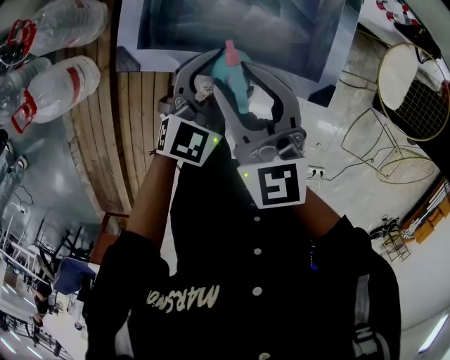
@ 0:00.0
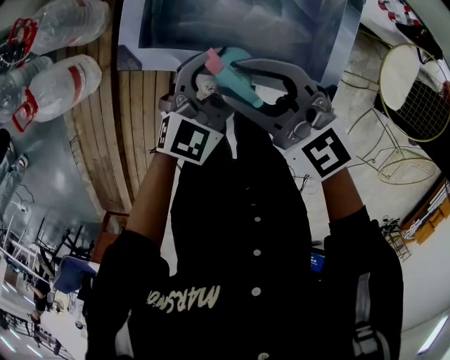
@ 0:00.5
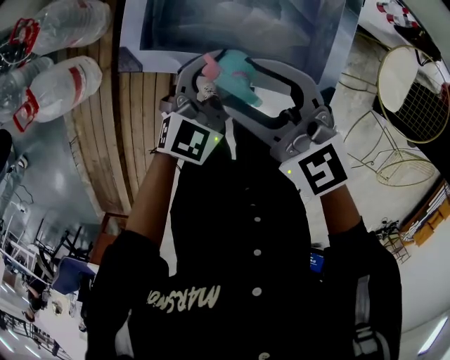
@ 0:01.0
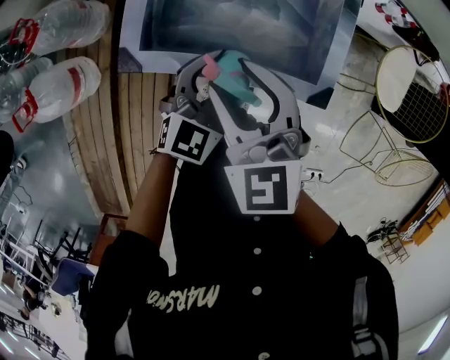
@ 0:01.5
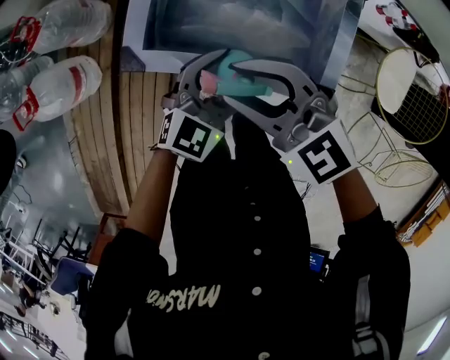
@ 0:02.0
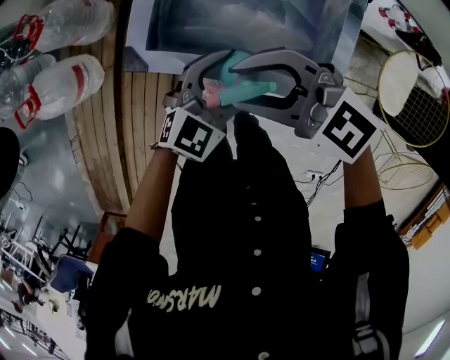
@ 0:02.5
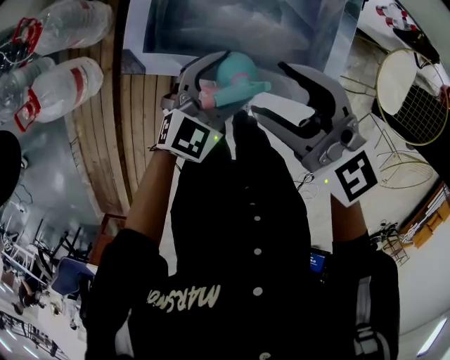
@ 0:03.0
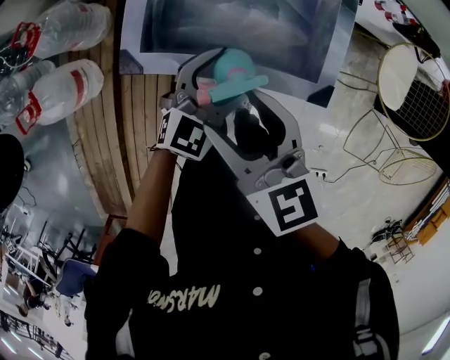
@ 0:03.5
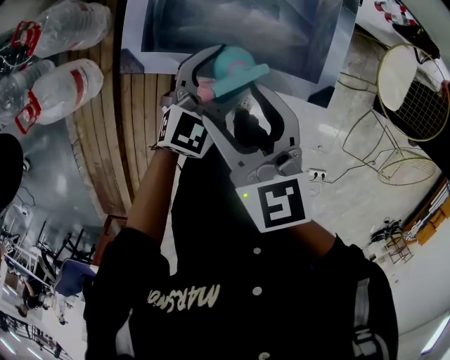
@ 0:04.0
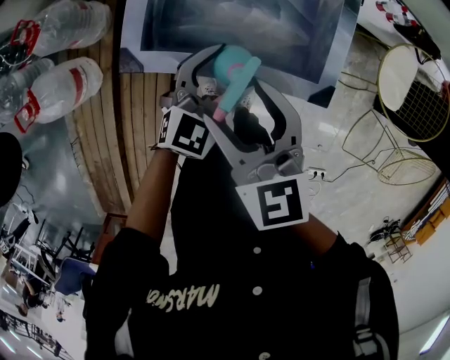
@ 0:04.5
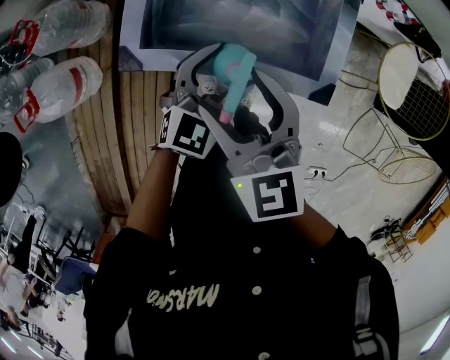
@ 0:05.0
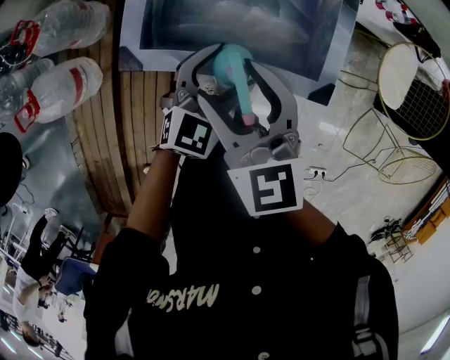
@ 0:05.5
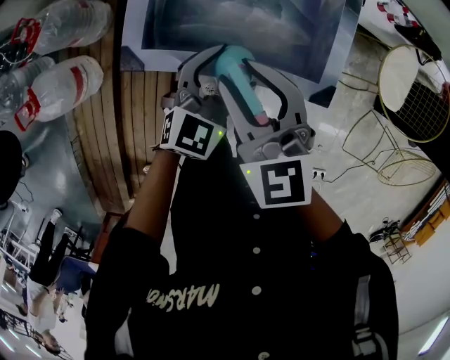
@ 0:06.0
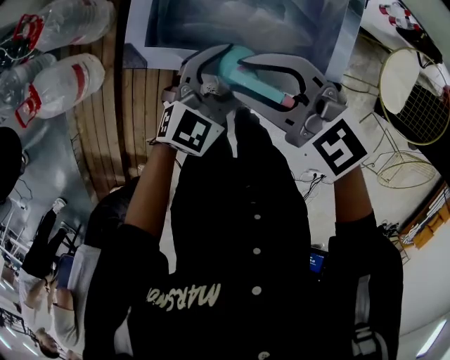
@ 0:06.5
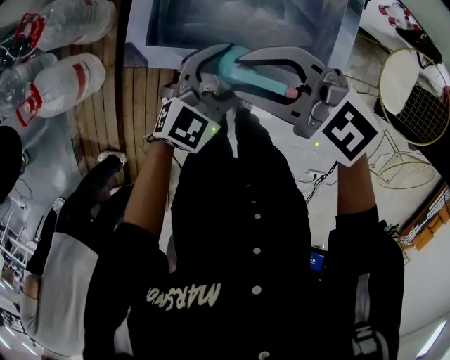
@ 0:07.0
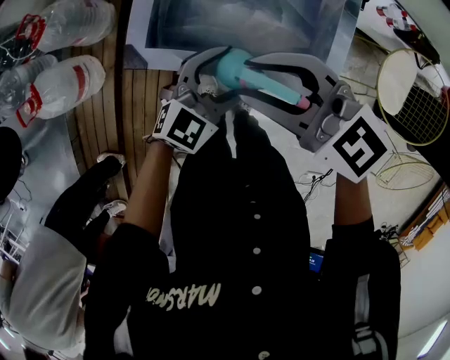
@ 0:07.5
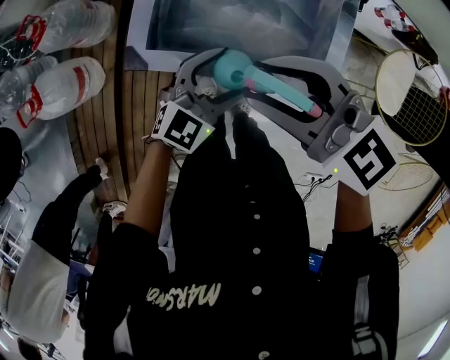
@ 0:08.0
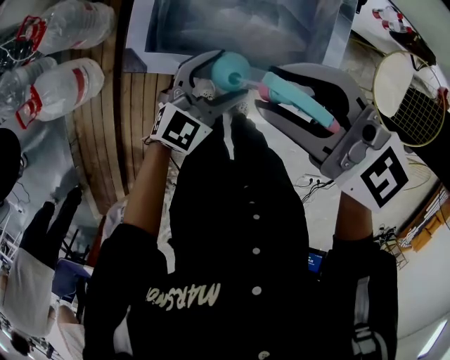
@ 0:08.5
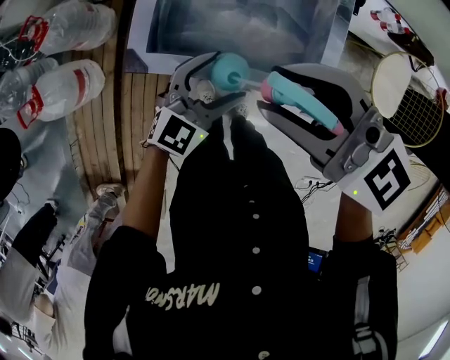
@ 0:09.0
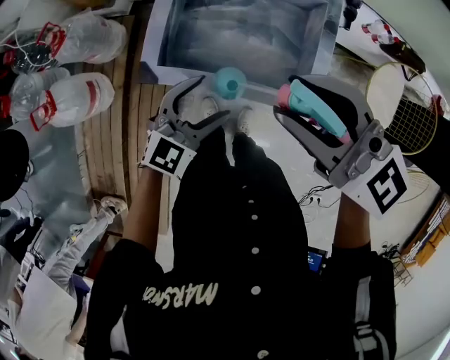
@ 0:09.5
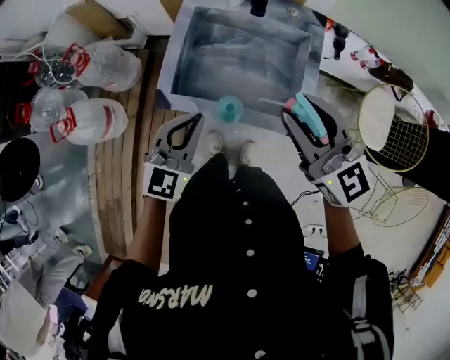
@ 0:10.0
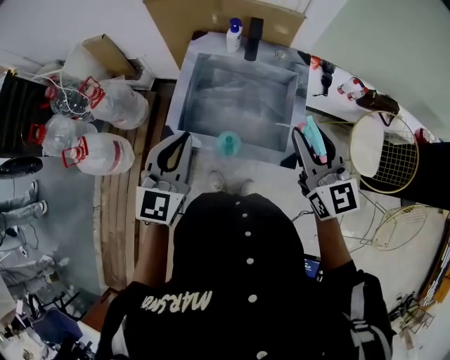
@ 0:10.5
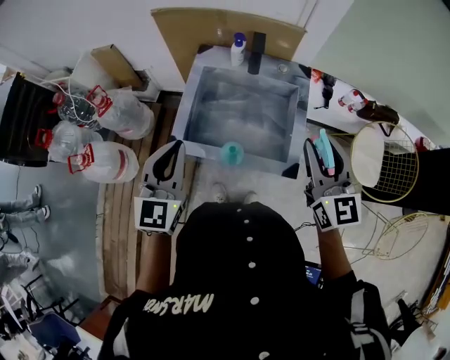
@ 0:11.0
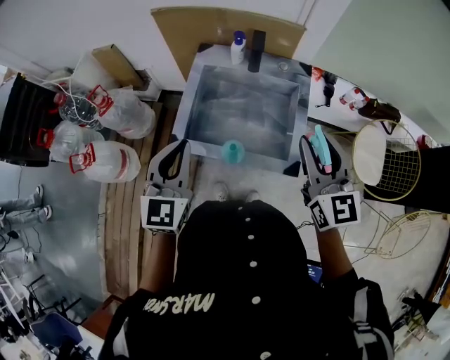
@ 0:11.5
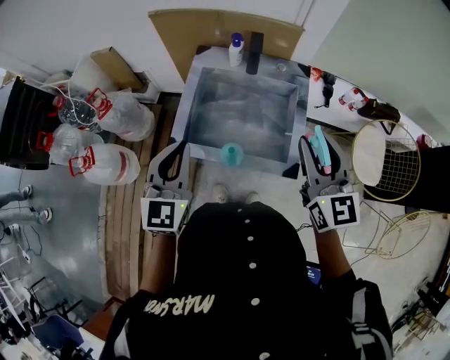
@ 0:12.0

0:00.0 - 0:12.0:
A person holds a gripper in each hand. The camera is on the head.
0:00.0 - 0:02.0: The right gripper changes its angle by roughly 40 degrees.
0:02.0 - 0:04.0: The right gripper rotates approximately 50 degrees, and opens its fingers.
0:04.0 - 0:06.0: The right gripper closes.
0:06.0 - 0:08.0: The right gripper travels upward by roughly 5 cm, and turns by roughly 40 degrees.
0:08.0 - 0:10.0: The right gripper heads upward and to the right, covering approximately 15 cm, and rotates about 30 degrees; the left gripper moves upward and to the left, roughly 15 cm, and closes up.
0:10.0 - 0:12.0: The right gripper is displaced to the right by some 5 cm, and swivels some 20 degrees. Meanwhile the left gripper heads upward, covering approximately 10 cm, and swivels roughly 20 degrees.

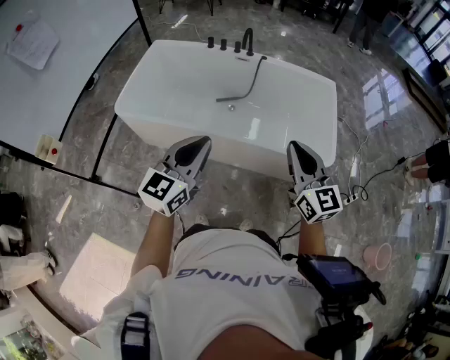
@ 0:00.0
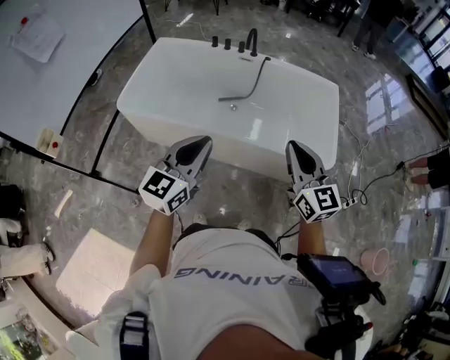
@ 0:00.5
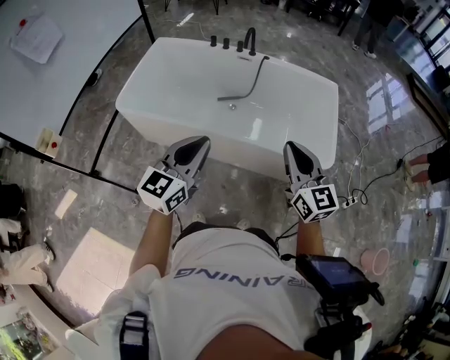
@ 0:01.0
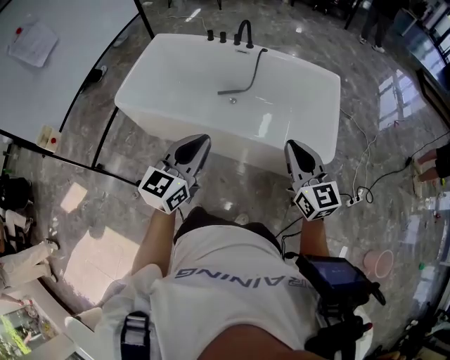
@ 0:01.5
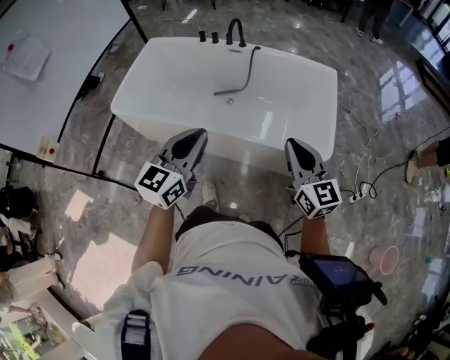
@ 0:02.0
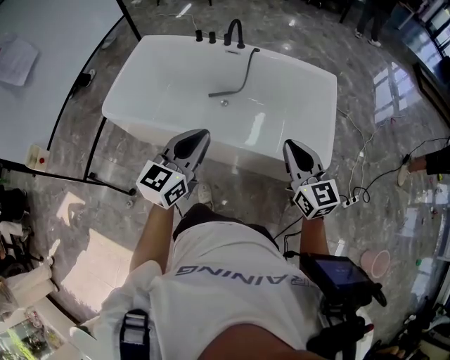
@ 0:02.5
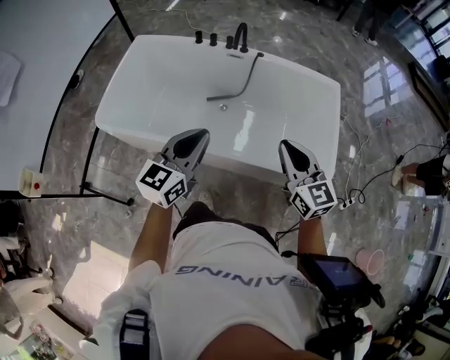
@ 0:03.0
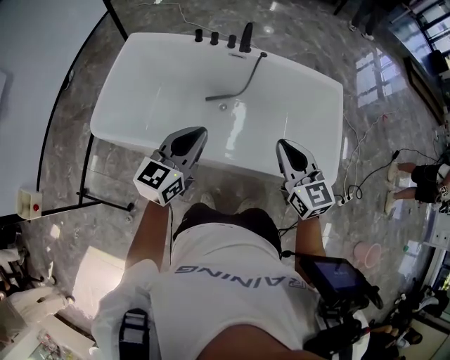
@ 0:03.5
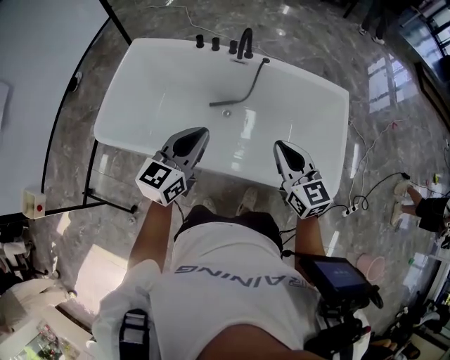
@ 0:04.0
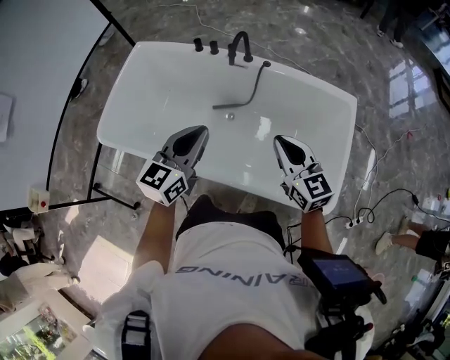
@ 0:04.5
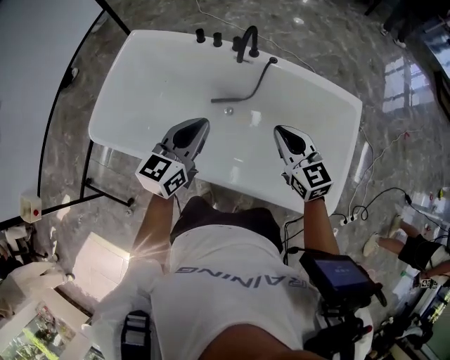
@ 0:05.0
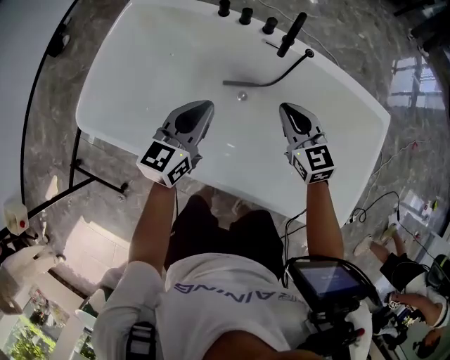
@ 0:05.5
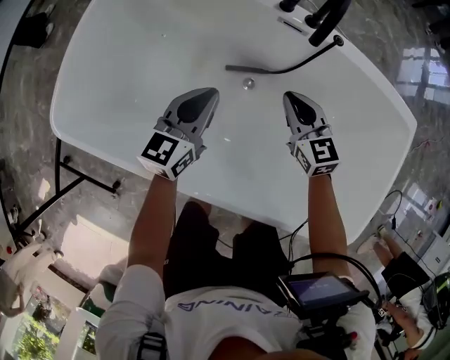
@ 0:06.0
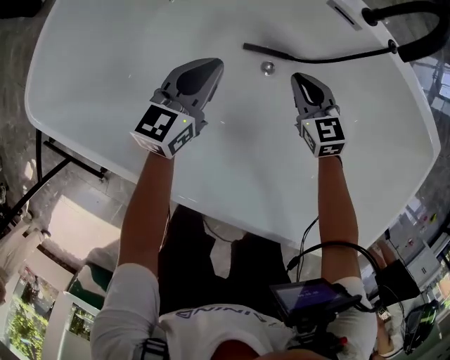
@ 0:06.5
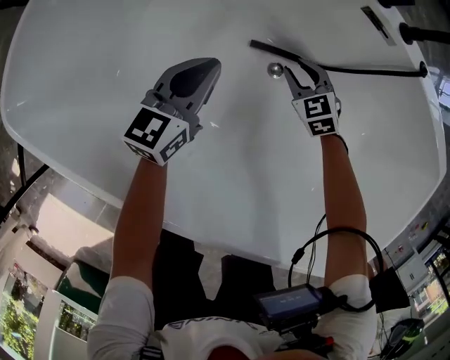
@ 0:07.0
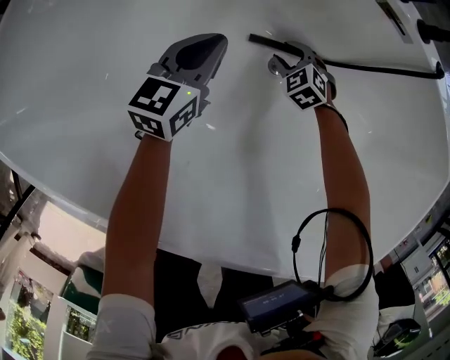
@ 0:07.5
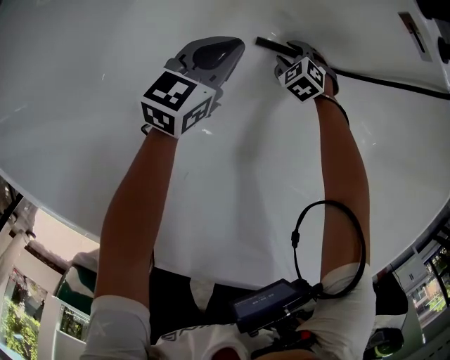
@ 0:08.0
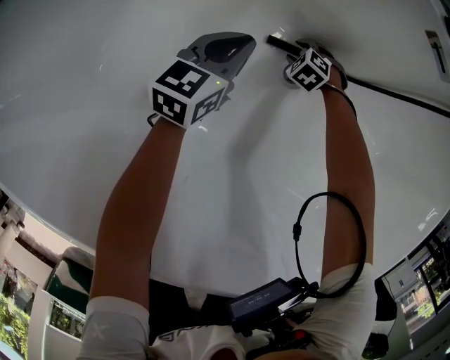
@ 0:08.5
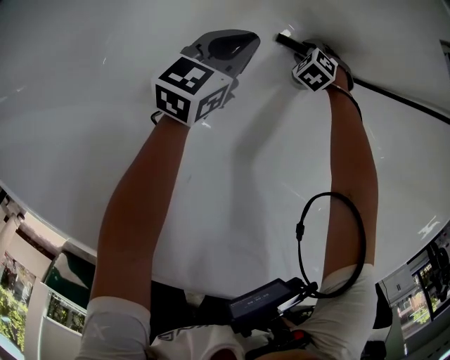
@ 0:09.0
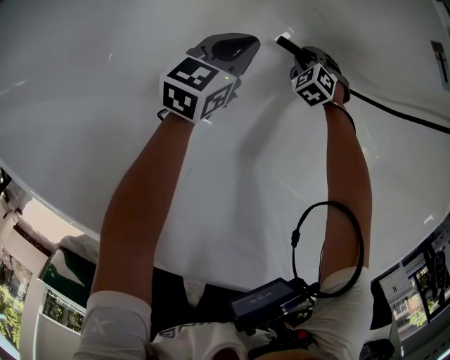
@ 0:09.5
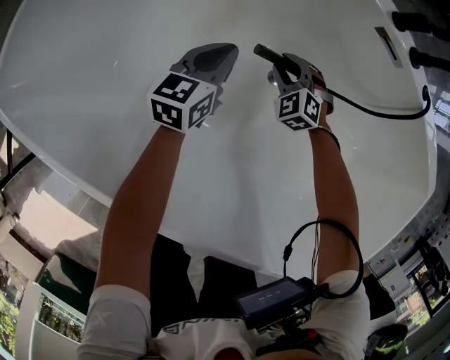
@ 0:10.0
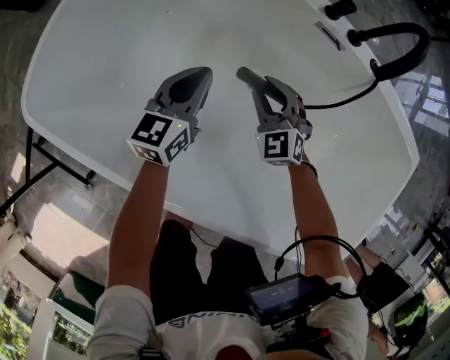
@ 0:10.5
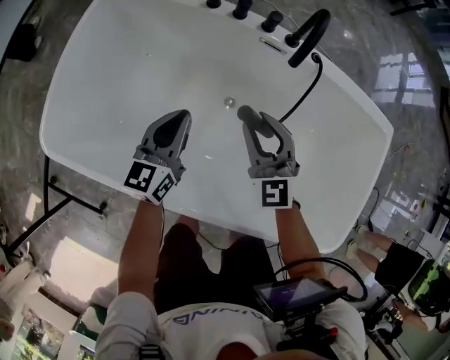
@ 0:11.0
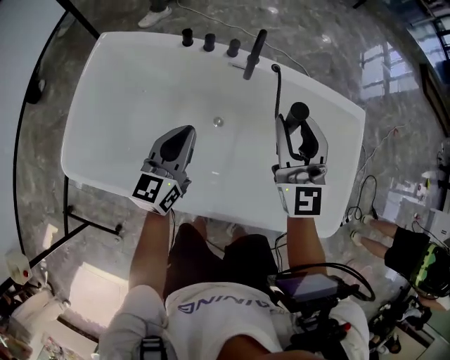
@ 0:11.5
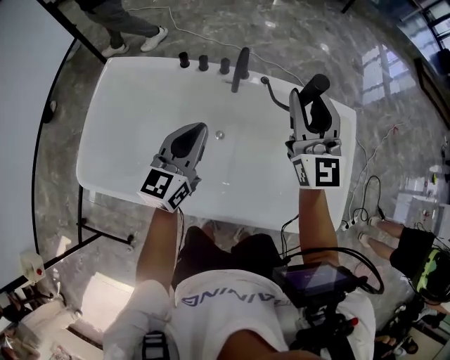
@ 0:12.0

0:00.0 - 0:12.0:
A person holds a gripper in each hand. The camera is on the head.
0:00.0 - 0:02.0: The grippers both shift to the right by some 15 cm.
0:02.0 - 0:04.0: Both grippers move forward and to the left, approximately 30 cm.
0:04.0 - 0:06.0: Both grippers move downward and forward, approximately 50 cm.
0:06.0 - 0:08.0: The grippers both shift downward by roughly 40 cm. The right gripper tilts its fingers approximately 40 degrees downward, and opens up.
0:08.0 - 0:10.0: The left gripper travels upward by approximately 5 cm. The right gripper goes approximately 15 cm upward.
0:10.0 - 0:12.0: The two grippers go about 70 cm upward. The right gripper tilts its fingers roughly 60 degrees upward, while the left gripper rotates some 30 degrees.

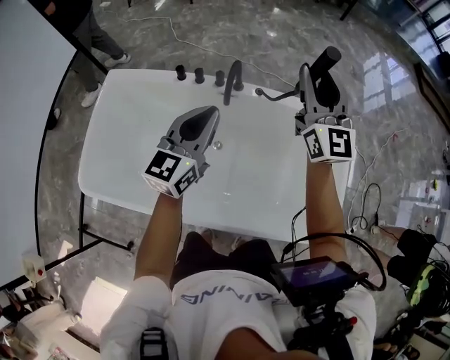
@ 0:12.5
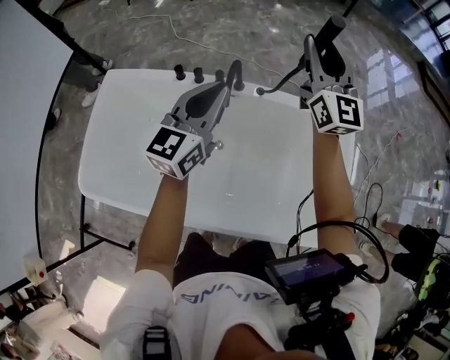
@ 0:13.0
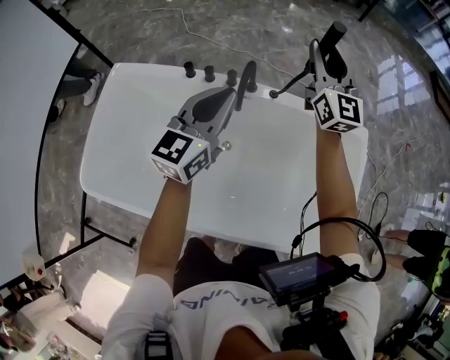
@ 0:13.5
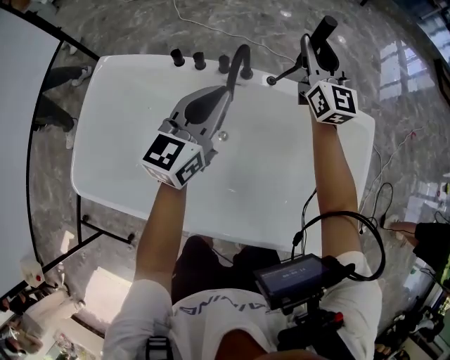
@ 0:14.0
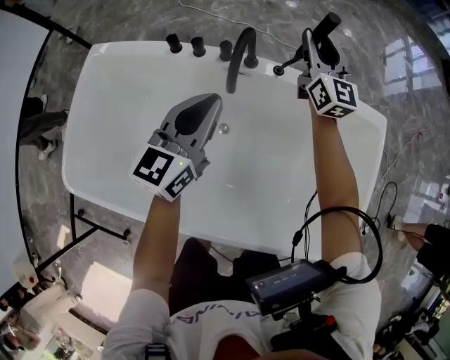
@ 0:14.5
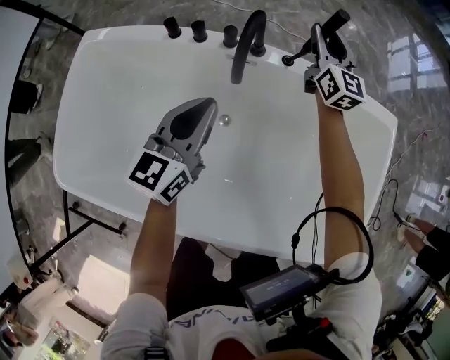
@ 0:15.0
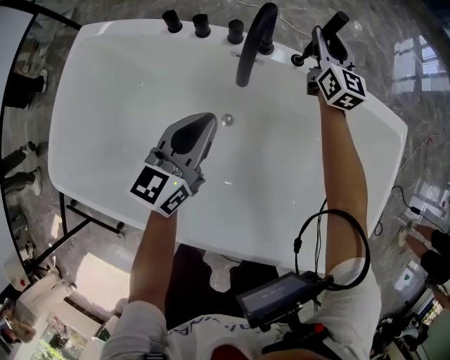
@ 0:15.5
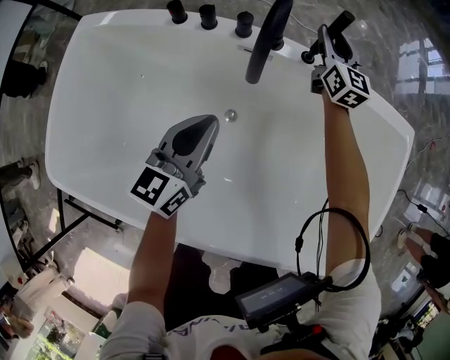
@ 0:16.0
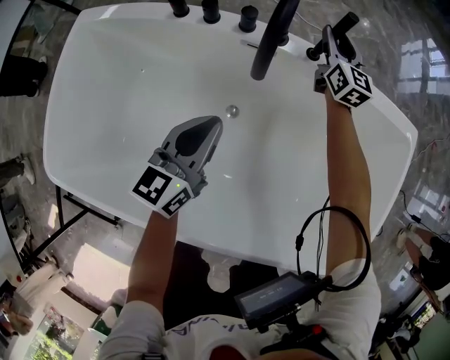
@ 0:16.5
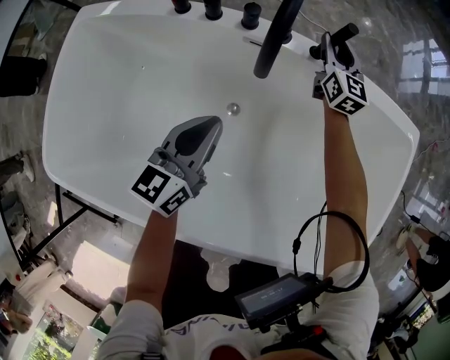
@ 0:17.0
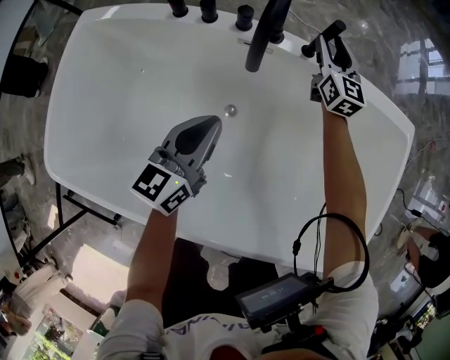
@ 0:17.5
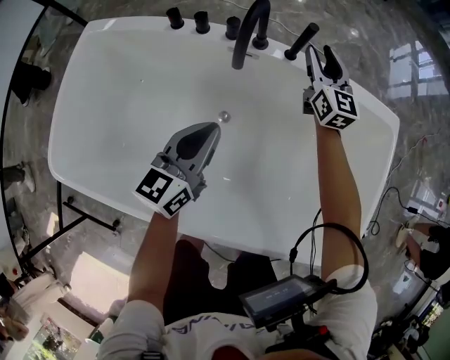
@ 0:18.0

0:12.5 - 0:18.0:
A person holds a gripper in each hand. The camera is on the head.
0:12.5 - 0:14.5: The left gripper goes some 20 cm downward and forward. The right gripper goes about 35 cm downward and forward.
0:14.5 - 0:16.0: The grippers both shift downward by approximately 20 cm.
0:16.0 - 0:18.0: The right gripper shifts roughly 10 cm backward and upward; the left gripper goes roughly 5 cm backward.
